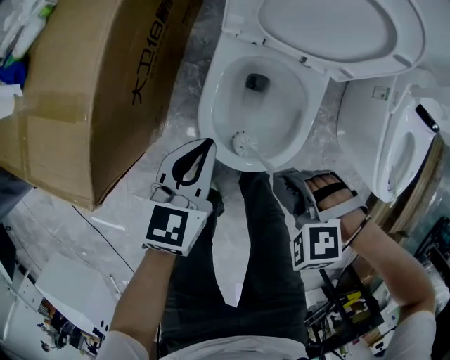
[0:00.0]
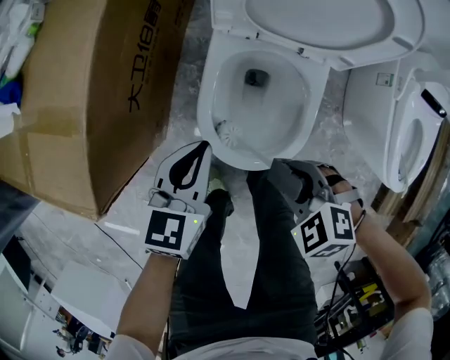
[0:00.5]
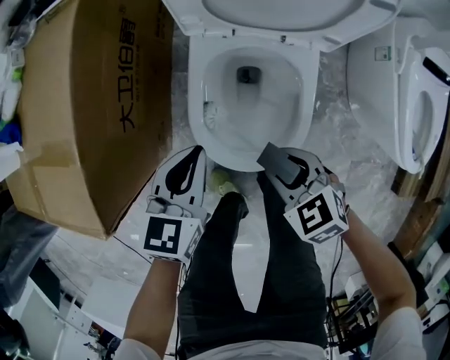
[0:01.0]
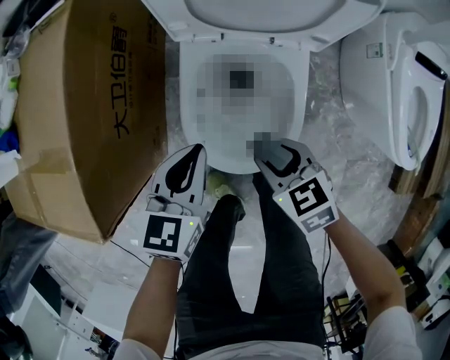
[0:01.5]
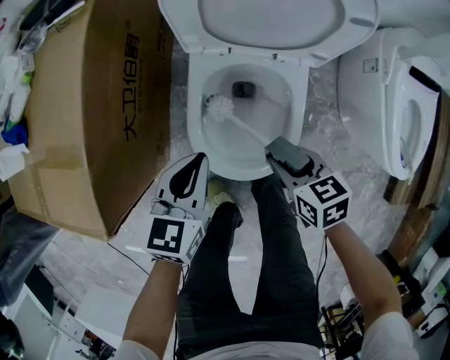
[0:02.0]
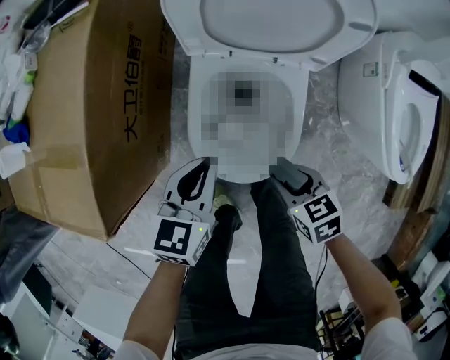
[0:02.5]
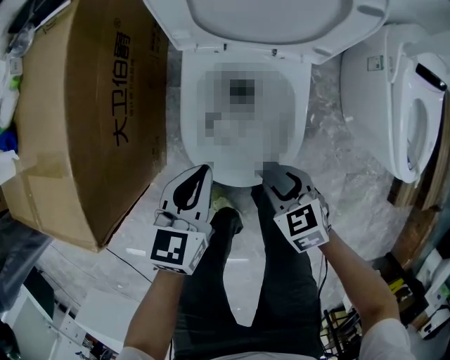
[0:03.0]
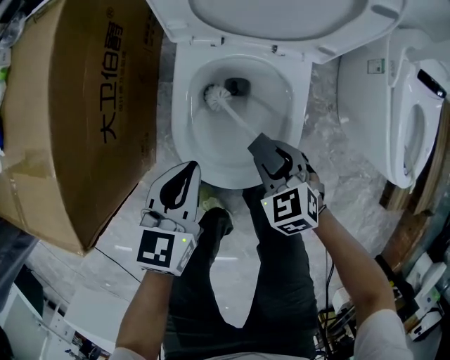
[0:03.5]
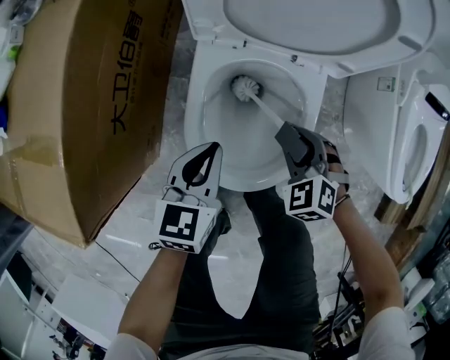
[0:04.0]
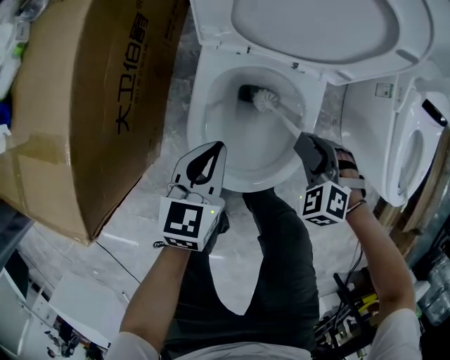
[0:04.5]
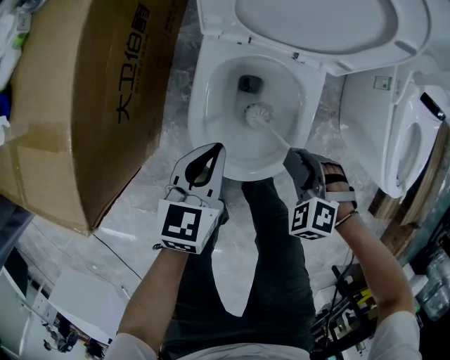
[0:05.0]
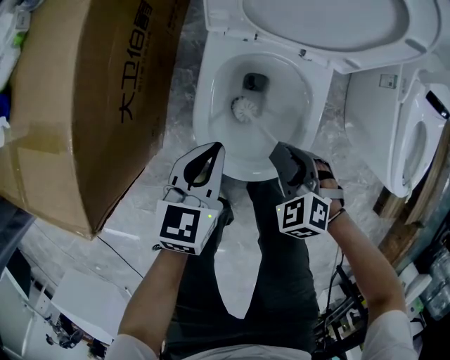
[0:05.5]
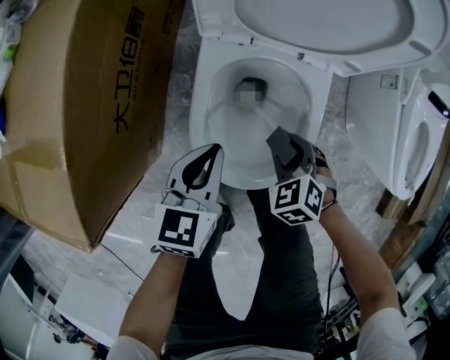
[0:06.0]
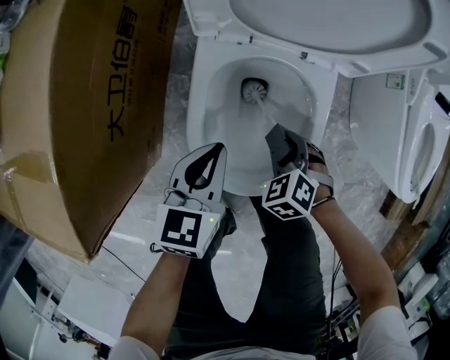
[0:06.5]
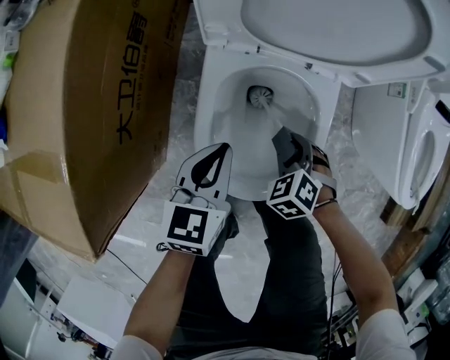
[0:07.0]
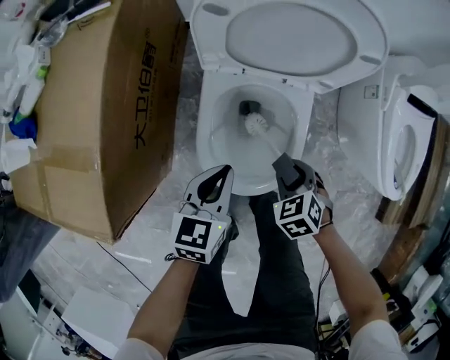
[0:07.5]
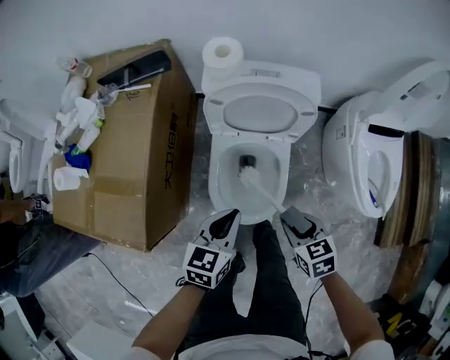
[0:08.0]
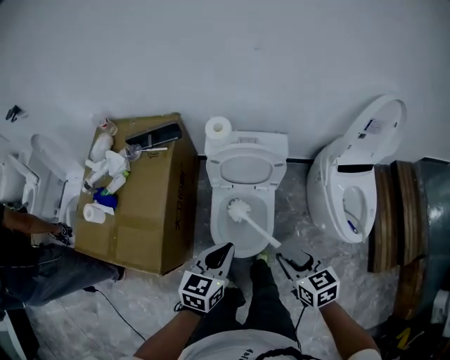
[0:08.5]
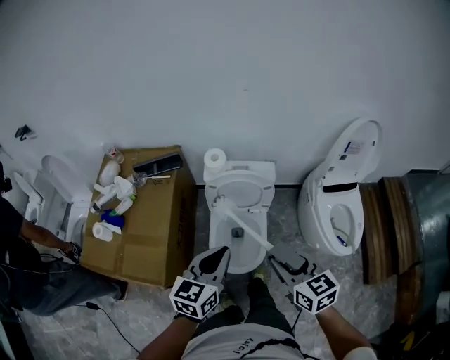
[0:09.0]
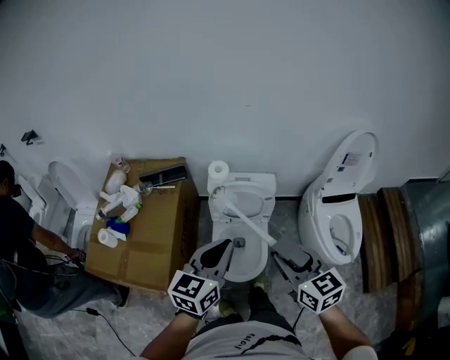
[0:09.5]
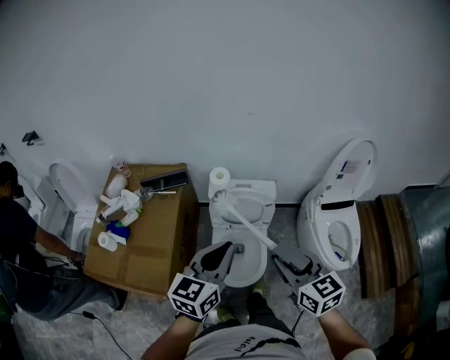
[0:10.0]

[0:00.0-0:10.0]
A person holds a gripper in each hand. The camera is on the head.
0:00.0 to 0:02.0: The right gripper moves about 10 cm, and rolls clockwise, seen from behind, by some 80 degrees.
0:02.0 to 0:04.0: The left gripper moves downward, approximately 10 cm; the right gripper travels downward and forward by some 10 cm, and twists approximately 50 degrees counterclockwise, seen from behind.
0:04.0 to 0:06.0: The right gripper reaches about 10 cm backward, then returns.
0:06.0 to 0:08.0: Both grippers move upward, some 25 cm. The right gripper rotates roughly 40 degrees.
0:08.0 to 0:10.0: The two grippers go some 40 cm upward. The right gripper tips its fingers upward by some 40 degrees, while the left gripper turns by roughly 30 degrees.

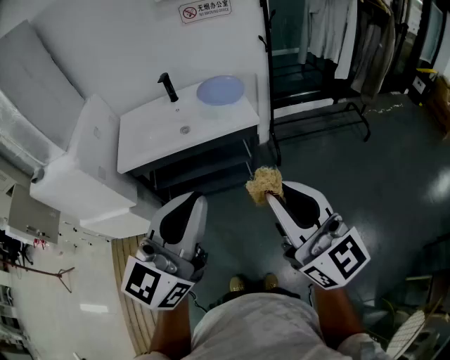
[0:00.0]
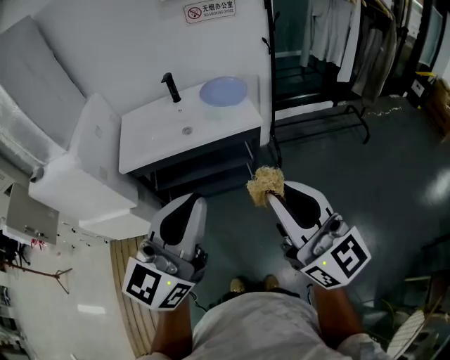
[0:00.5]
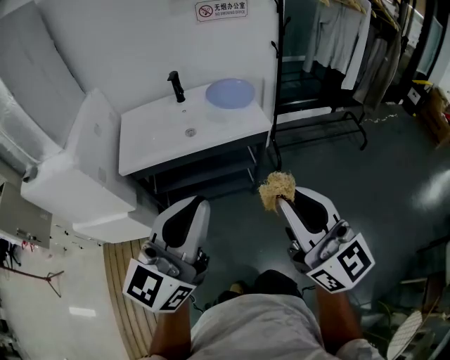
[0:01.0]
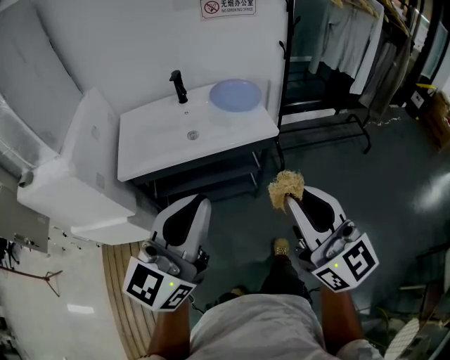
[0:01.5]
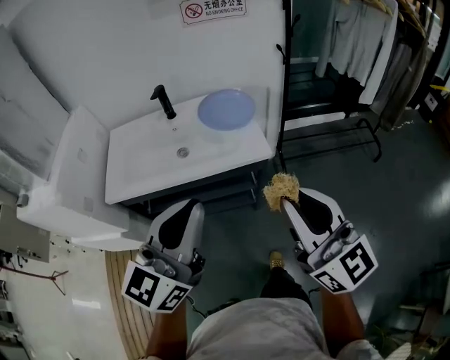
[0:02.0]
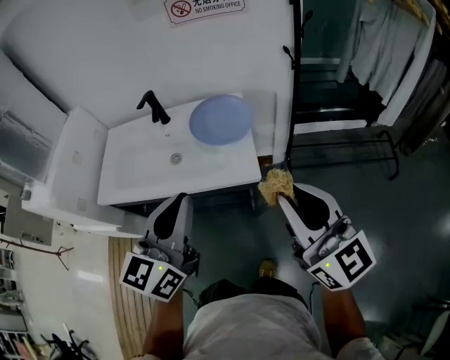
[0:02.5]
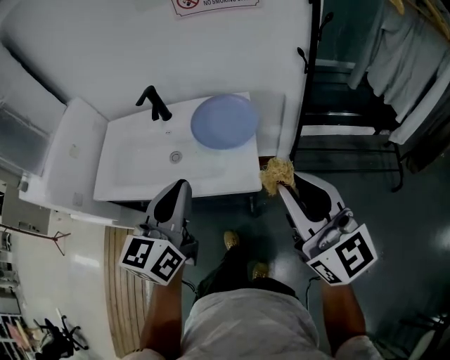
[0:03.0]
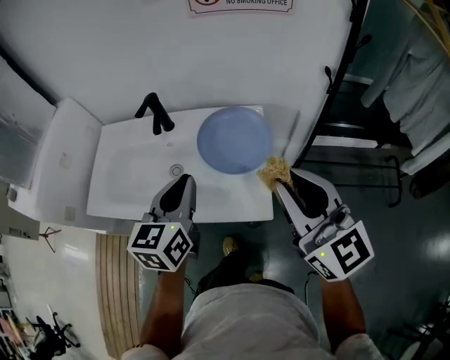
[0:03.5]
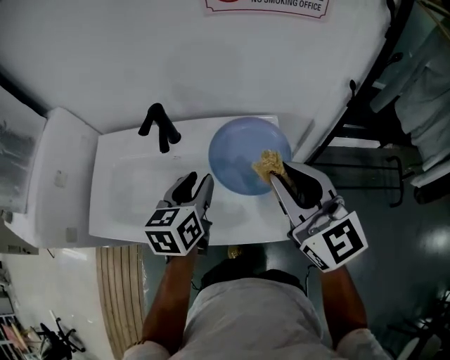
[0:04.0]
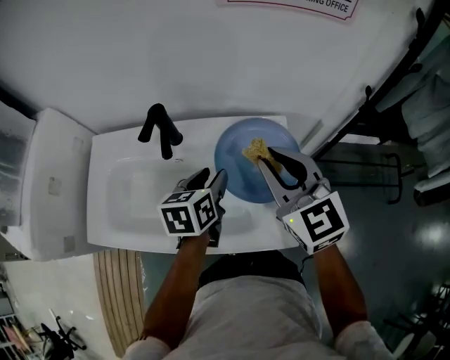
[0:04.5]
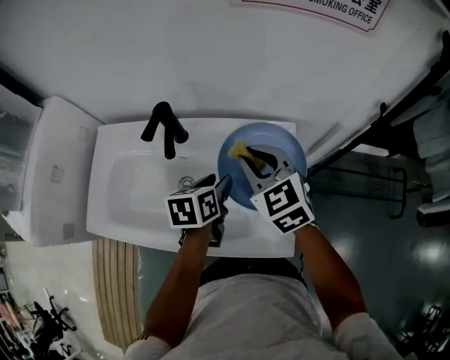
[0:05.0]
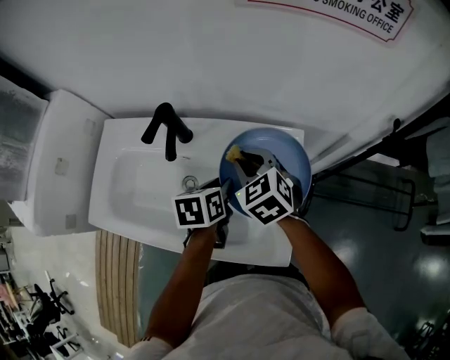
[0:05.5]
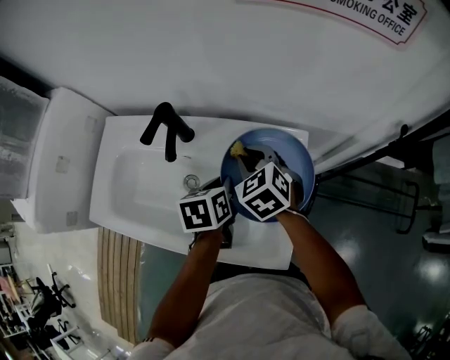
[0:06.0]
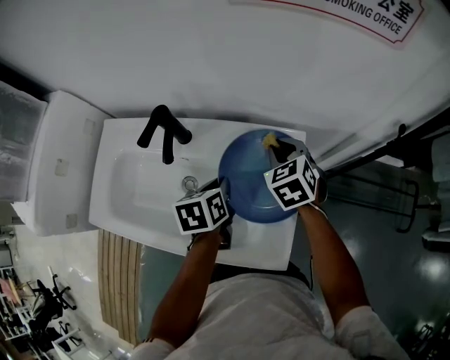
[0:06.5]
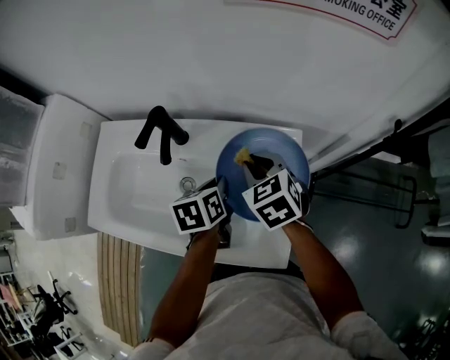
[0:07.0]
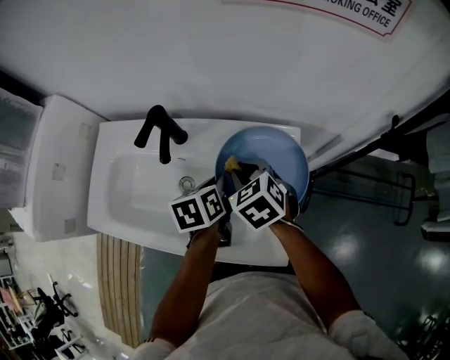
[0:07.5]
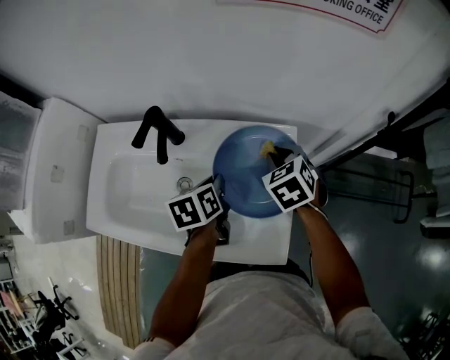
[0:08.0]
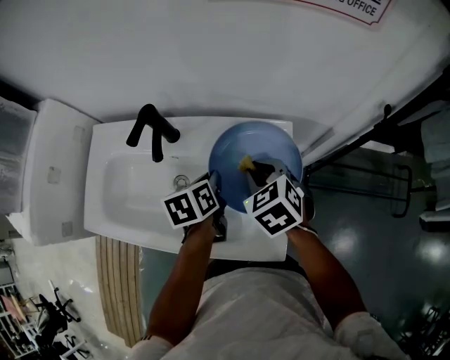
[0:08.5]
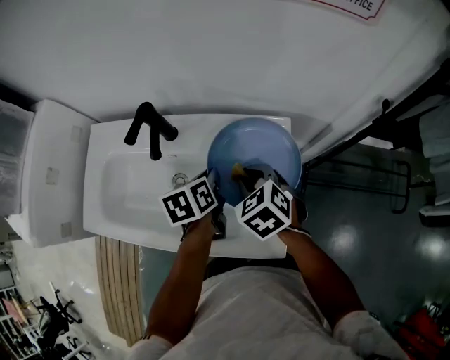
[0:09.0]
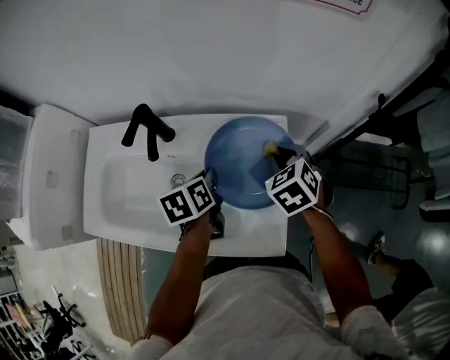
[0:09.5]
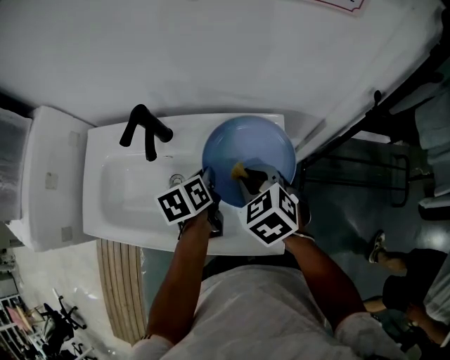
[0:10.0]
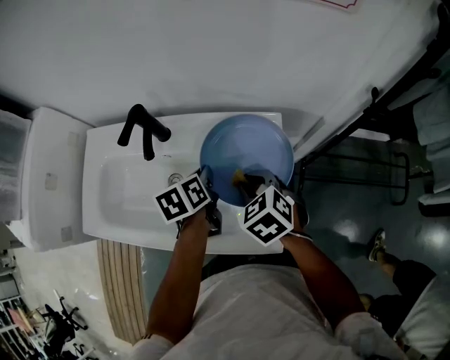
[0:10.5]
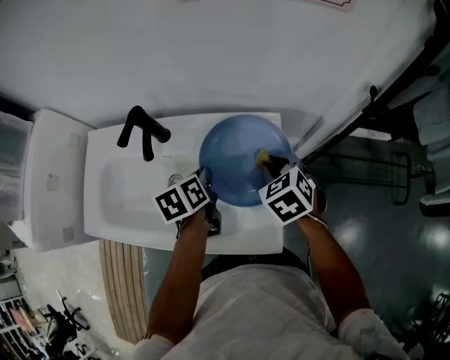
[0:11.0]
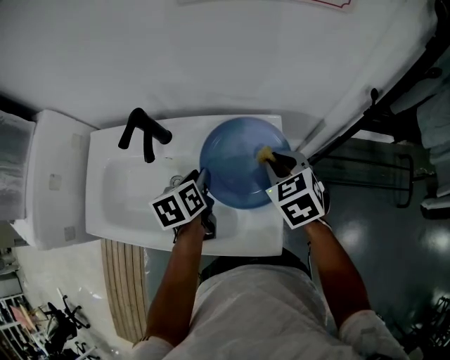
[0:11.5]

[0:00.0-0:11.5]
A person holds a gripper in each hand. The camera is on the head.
0:00.0 to 0:02.0: The two grippers go about 20 cm forward.
0:02.0 to 0:04.0: The left gripper travels forward and downward by approximately 40 cm, points its fingers roughly 30 degrees further downward, and opens up. Meanwhile the right gripper heads forward, covering some 40 cm.
0:04.0 to 0:06.0: The left gripper goes about 15 cm downward and forward, swivels roughly 30 degrees, and closes up; the right gripper travels downward and forward by some 25 cm, and points its fingers roughly 40 degrees further downward.
0:06.0 to 0:07.5: The right gripper goes to the right and returns, roughly 10 cm each way.
0:07.5 to 0:09.5: The right gripper goes left and right, about 15 cm each way, reversing 2 times.
0:09.5 to 0:11.5: The right gripper moves about 10 cm to the left and comes back.

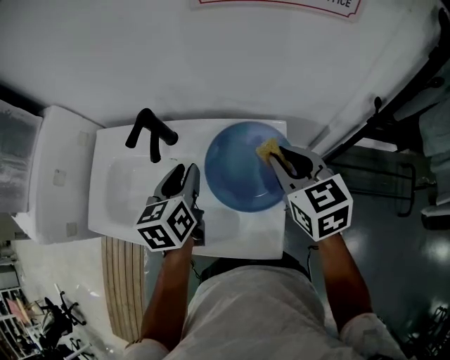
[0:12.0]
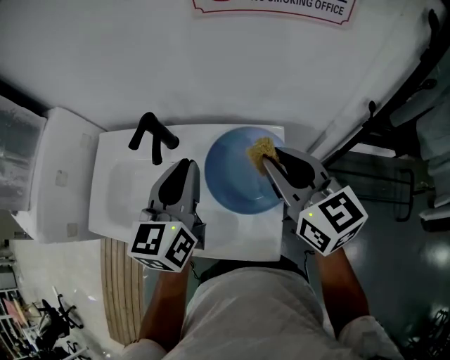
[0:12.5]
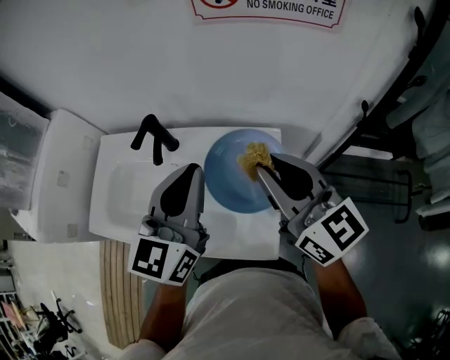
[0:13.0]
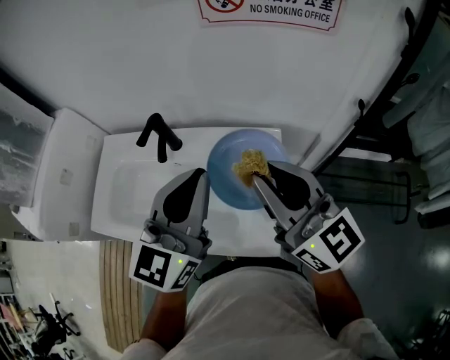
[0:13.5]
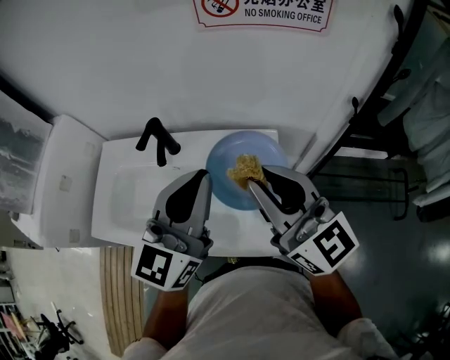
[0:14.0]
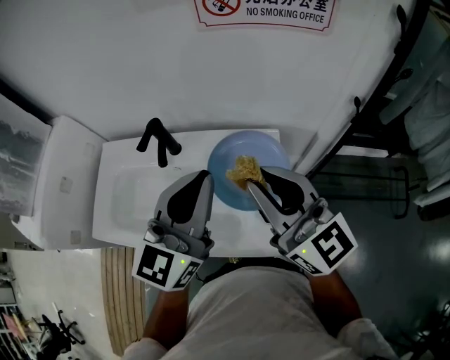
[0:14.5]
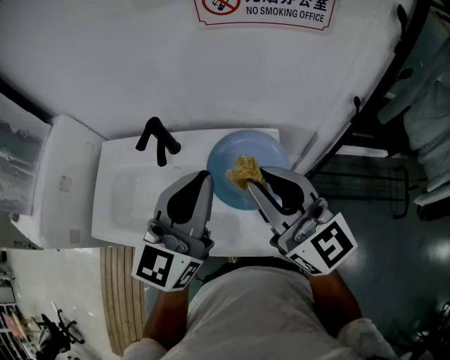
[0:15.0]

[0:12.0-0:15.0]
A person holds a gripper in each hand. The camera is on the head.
0:12.0 to 0:13.5: The right gripper heads upward, backward and to the left, covering roughly 15 cm, and points its fingers about 40 degrees further upward. The left gripper shifts about 20 cm upward and backward, tilts its fingers about 30 degrees upward, and closes.
0:13.5 to 0:15.0: The grippers move only a little.

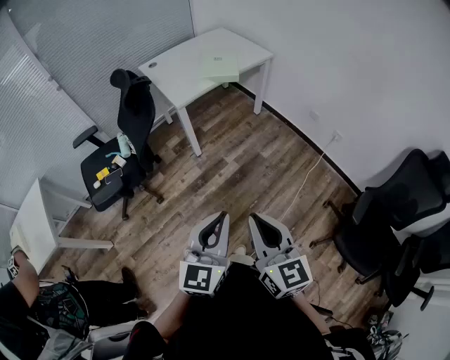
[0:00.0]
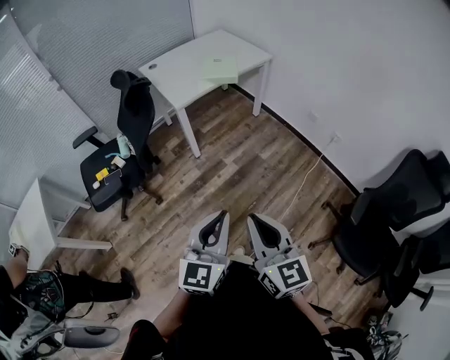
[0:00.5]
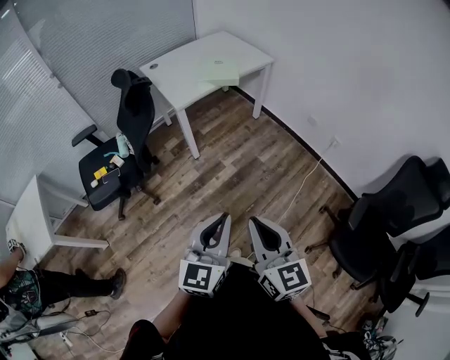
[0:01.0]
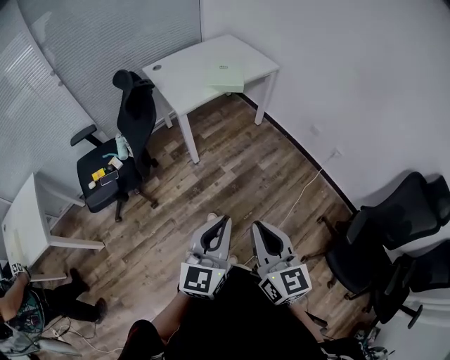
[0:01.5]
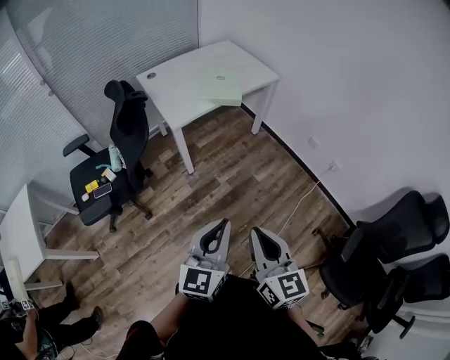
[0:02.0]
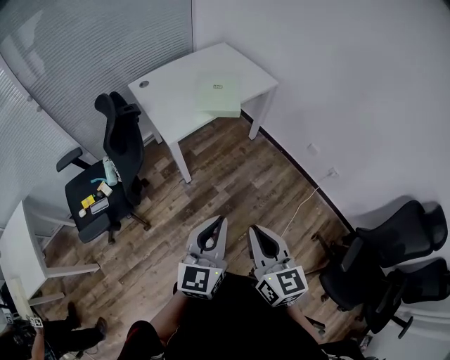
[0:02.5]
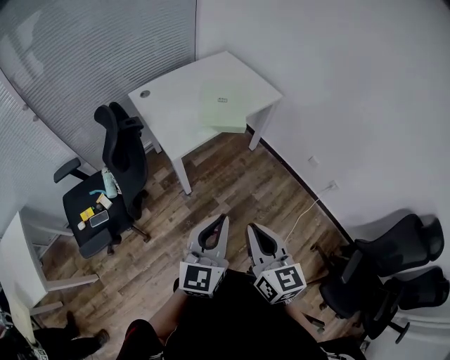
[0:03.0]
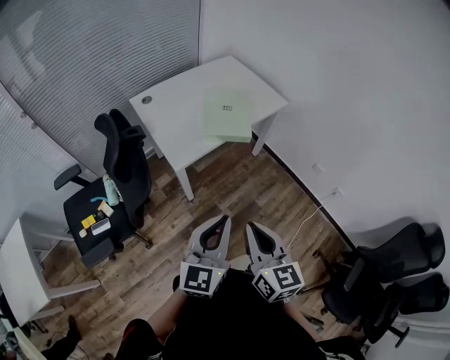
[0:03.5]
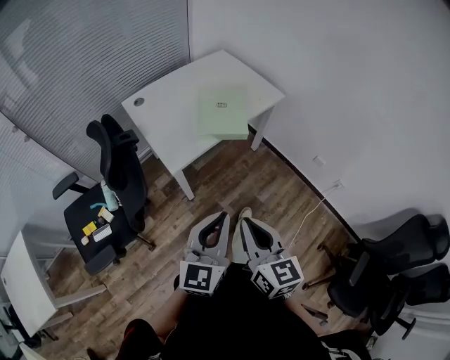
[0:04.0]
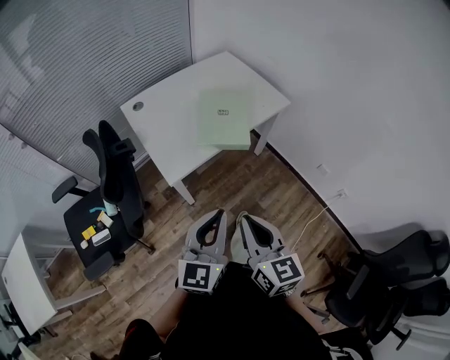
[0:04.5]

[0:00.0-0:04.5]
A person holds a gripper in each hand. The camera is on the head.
0:00.0 to 0:02.0: The two grippers go some 15 cm forward.
0:02.0 to 0:04.5: Both grippers move forward, about 35 cm.
